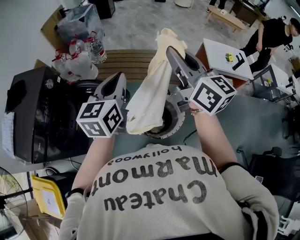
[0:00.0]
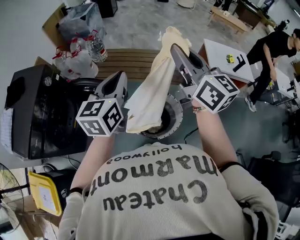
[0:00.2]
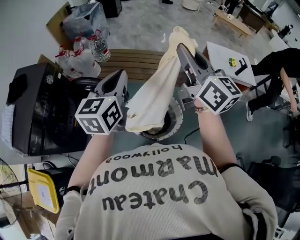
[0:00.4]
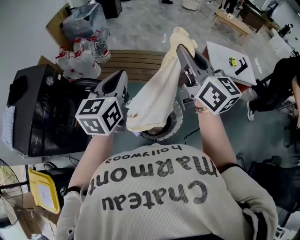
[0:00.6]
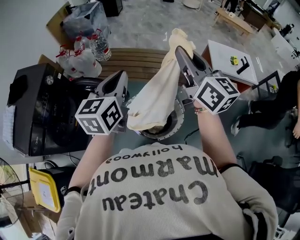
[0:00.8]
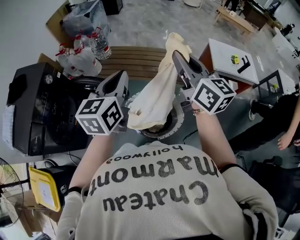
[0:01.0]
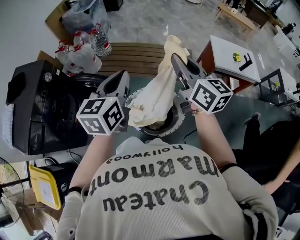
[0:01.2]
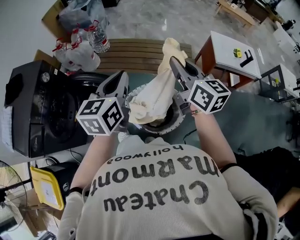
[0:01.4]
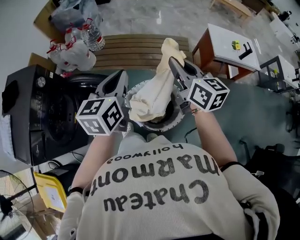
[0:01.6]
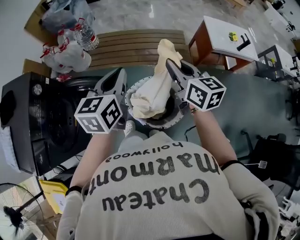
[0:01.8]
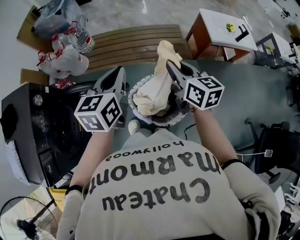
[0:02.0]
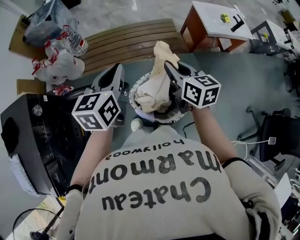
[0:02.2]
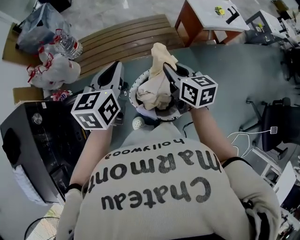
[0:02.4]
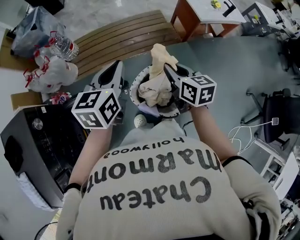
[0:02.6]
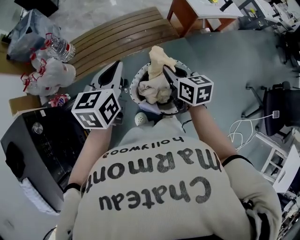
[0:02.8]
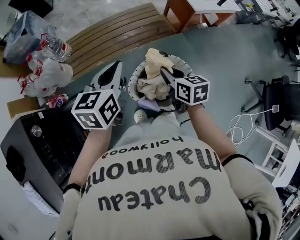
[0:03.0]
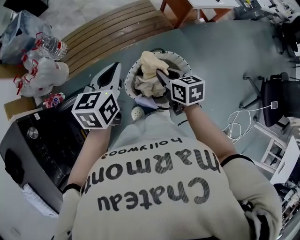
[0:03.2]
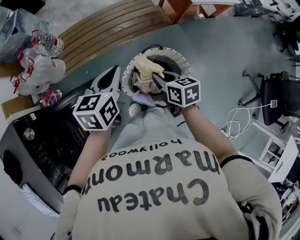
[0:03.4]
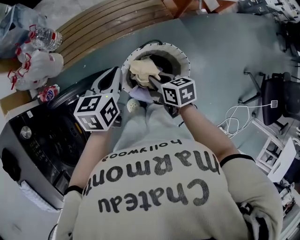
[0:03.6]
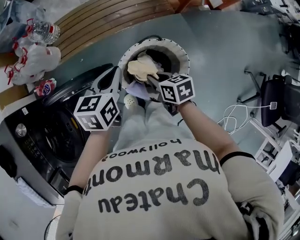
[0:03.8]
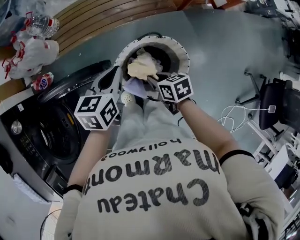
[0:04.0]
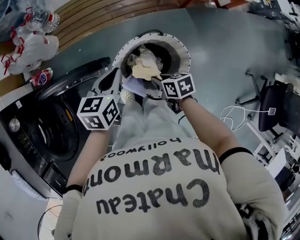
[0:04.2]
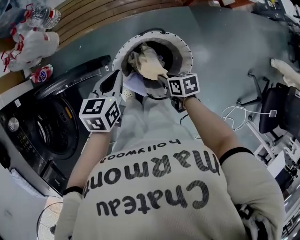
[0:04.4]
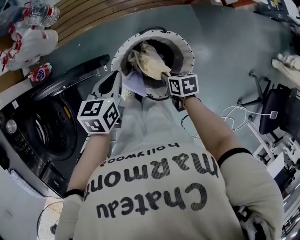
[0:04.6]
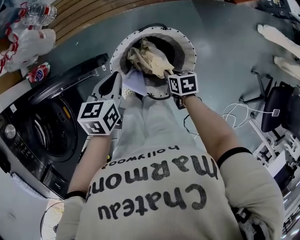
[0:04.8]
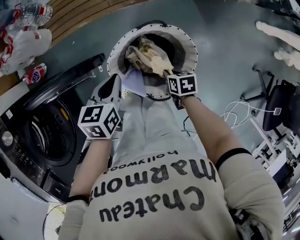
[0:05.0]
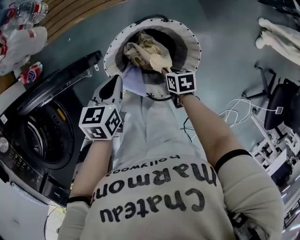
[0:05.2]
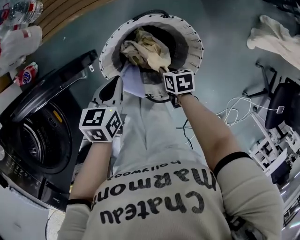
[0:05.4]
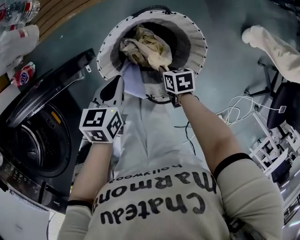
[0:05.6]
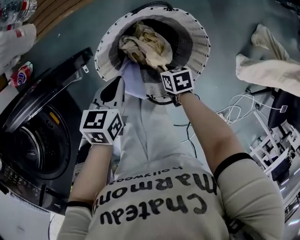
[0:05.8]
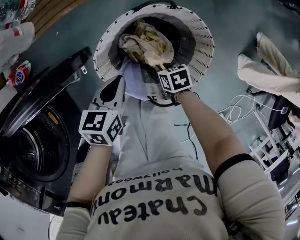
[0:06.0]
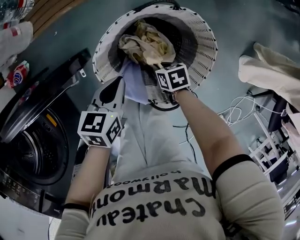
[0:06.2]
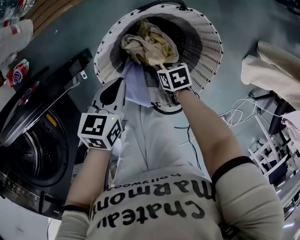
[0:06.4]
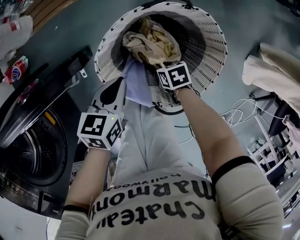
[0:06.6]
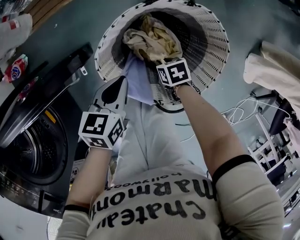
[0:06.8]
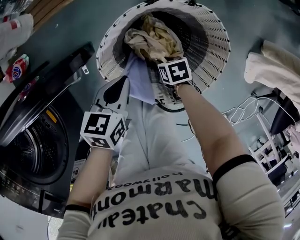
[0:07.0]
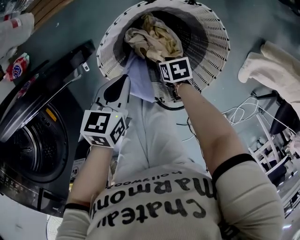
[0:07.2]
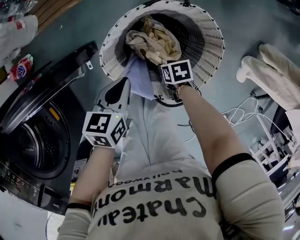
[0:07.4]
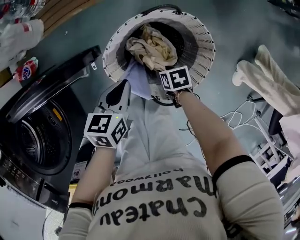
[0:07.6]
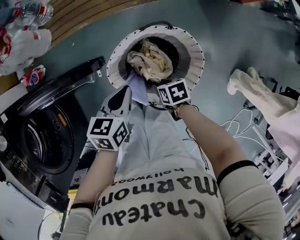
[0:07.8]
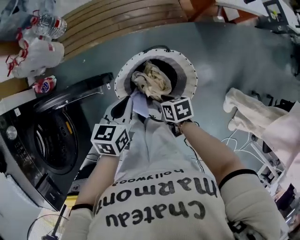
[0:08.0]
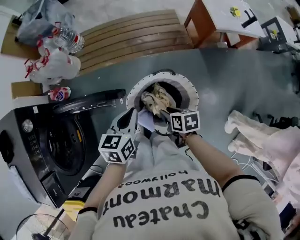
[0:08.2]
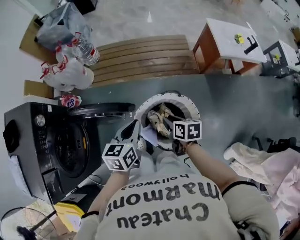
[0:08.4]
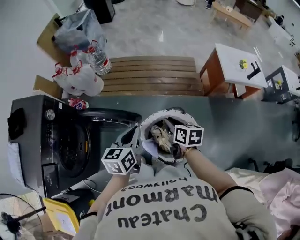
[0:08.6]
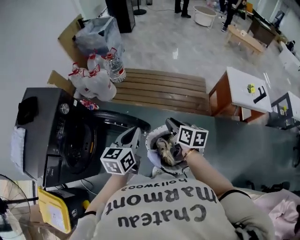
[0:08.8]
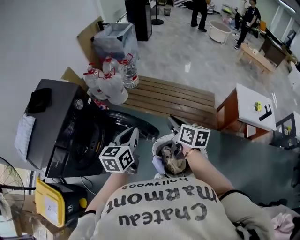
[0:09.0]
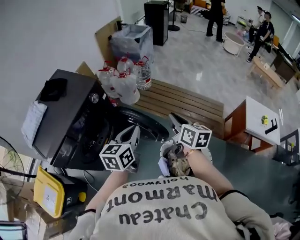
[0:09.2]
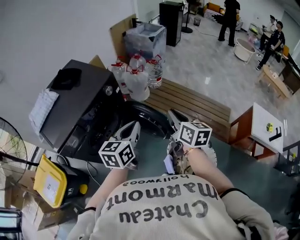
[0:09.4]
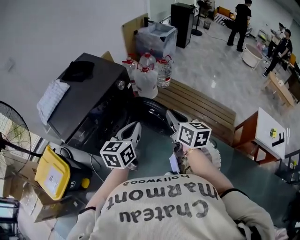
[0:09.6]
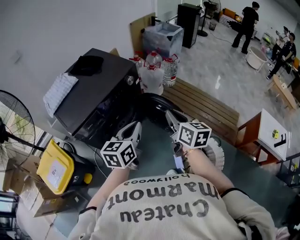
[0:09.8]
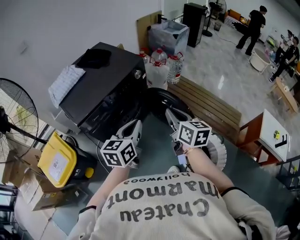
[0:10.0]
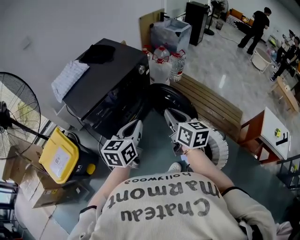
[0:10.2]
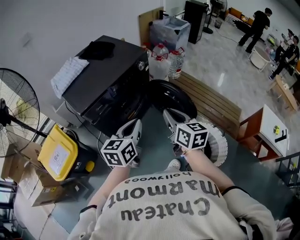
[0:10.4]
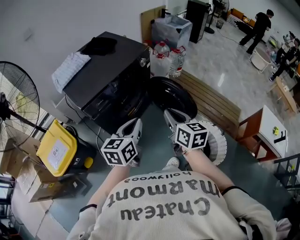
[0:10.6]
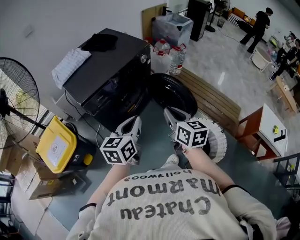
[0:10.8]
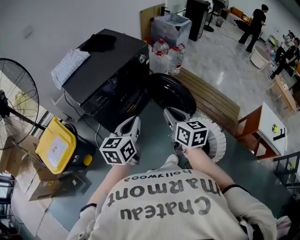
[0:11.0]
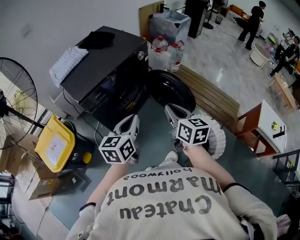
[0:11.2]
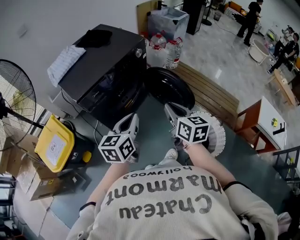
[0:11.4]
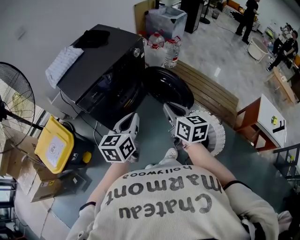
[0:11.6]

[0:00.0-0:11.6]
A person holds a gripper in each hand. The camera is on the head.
0:00.0 to 0:01.4: The right gripper is displaced downward by about 10 cm. Meanwhile the left gripper shifts by approximately 5 cm.
0:01.4 to 0:02.8: The left gripper shifts roughly 15 cm forward, downward and to the left, and turns by approximately 30 degrees; the right gripper heads downward, covering approximately 20 cm, and swivels approximately 40 degrees.
0:02.8 to 0:04.4: The left gripper goes approximately 20 cm downward, and swivels some 20 degrees. Meanwhile the right gripper moves downward and backward, some 25 cm, and swivels approximately 40 degrees.
0:04.4 to 0:05.8: The grippers both shift downward by approximately 20 cm.
0:05.8 to 0:07.2: The right gripper moves downward, approximately 10 cm, and opens.
0:07.2 to 0:08.8: Both grippers travel together upward, approximately 50 cm. The right gripper points its fingers about 40 degrees further upward, while the left gripper turns by some 40 degrees.
0:08.8 to 0:10.2: The left gripper moves some 35 cm, and rotates roughly 30 degrees; the right gripper changes place by approximately 40 cm, and turns by approximately 40 degrees.
0:10.2 to 0:11.6: The right gripper goes about 5 cm backward, while the left gripper ends up approximately 5 cm from where it was.

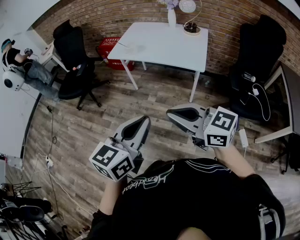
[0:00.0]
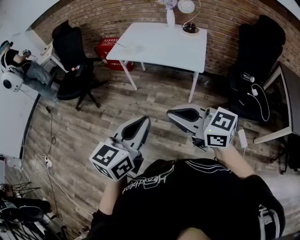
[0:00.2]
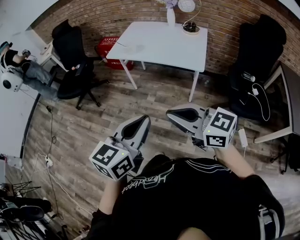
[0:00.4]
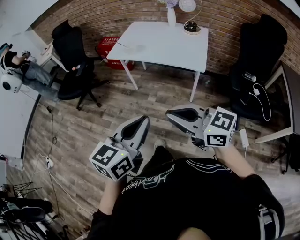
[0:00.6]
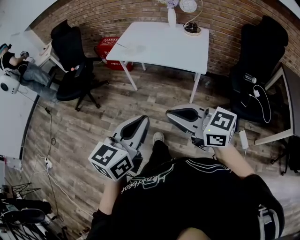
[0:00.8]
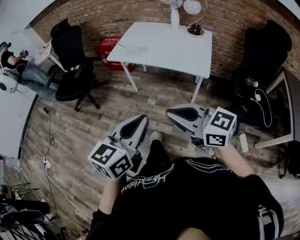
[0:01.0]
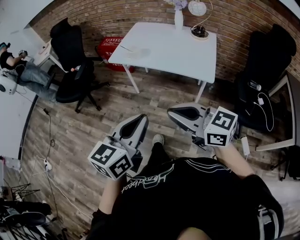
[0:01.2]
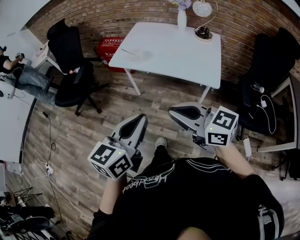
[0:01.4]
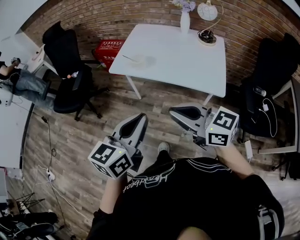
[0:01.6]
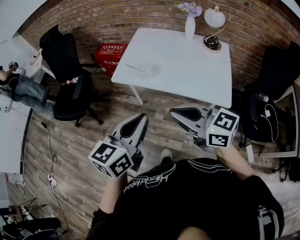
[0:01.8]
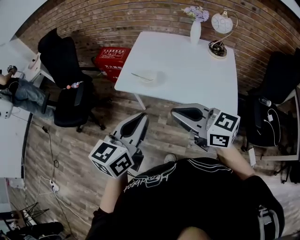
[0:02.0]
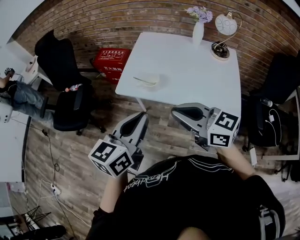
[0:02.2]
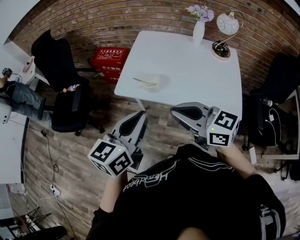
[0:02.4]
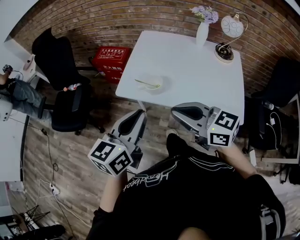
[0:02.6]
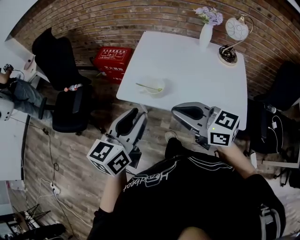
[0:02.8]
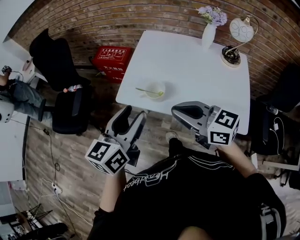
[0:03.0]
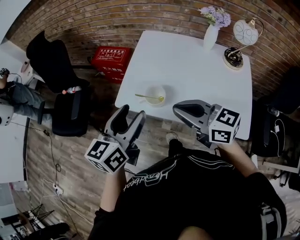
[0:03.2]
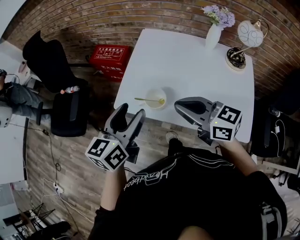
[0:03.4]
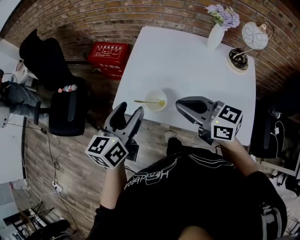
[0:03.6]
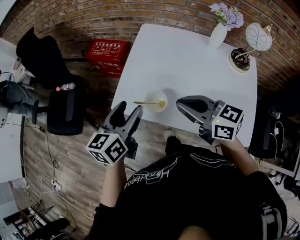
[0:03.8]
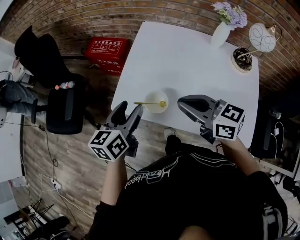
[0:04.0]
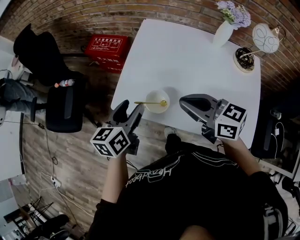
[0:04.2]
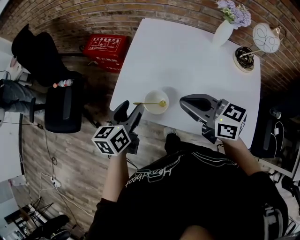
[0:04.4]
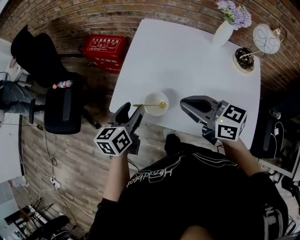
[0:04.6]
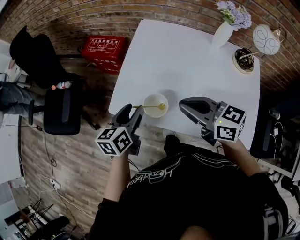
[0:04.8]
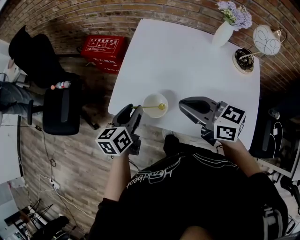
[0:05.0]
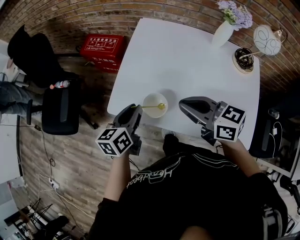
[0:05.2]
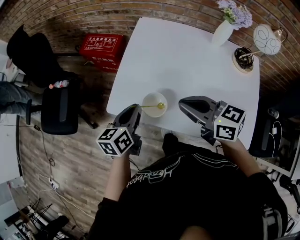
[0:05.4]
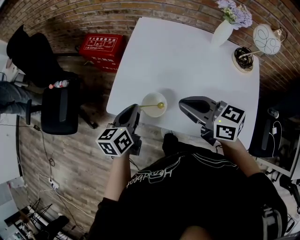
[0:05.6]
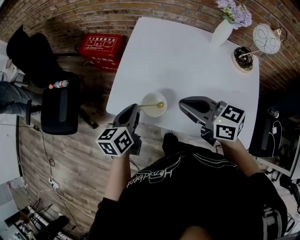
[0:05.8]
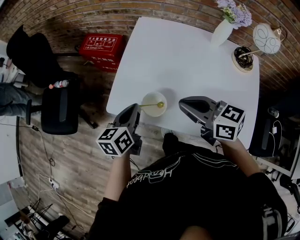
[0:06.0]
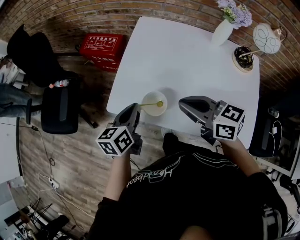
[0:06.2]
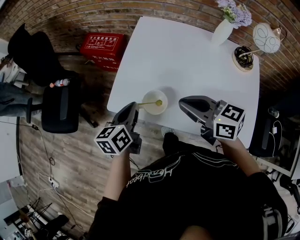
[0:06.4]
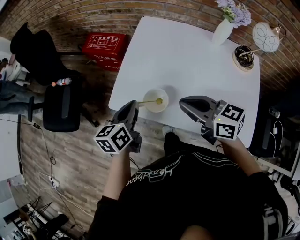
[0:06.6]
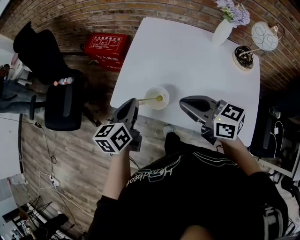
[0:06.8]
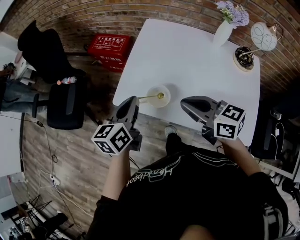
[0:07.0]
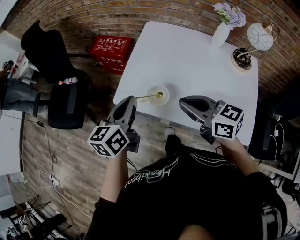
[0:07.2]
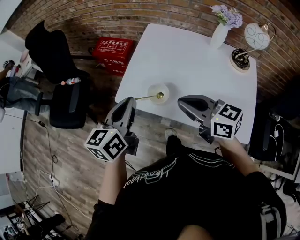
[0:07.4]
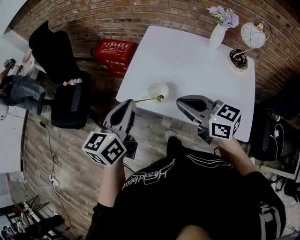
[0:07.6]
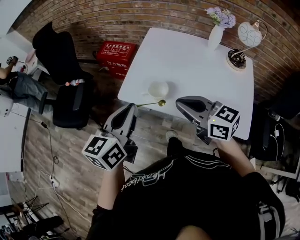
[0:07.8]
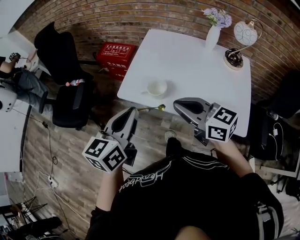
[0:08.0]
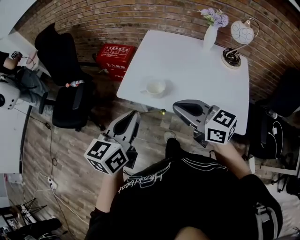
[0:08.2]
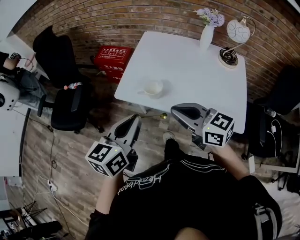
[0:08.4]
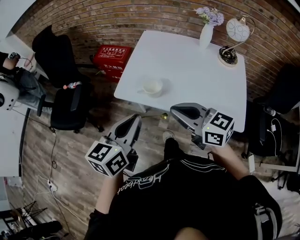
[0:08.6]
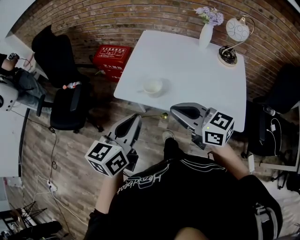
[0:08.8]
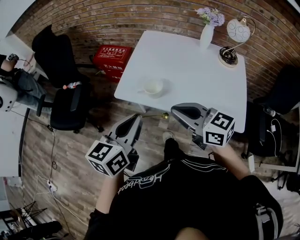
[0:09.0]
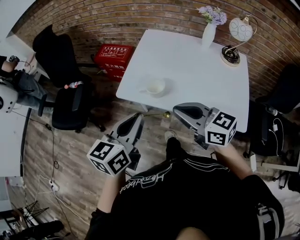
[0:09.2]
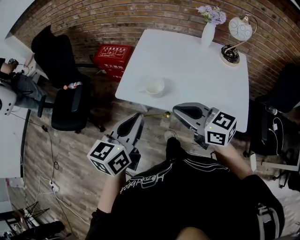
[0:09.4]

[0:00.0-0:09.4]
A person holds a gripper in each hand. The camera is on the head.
0:00.0 to 0:01.6: The grippers both shift forward by approximately 25 cm.
0:01.6 to 0:03.2: Both grippers move forward, approximately 35 cm. The left gripper opens.
0:03.2 to 0:04.8: The left gripper shifts approximately 20 cm downward and forward; the right gripper is displaced forward and downward by roughly 10 cm.
0:04.8 to 0:06.2: The left gripper closes.
0:06.2 to 0:07.8: The left gripper goes roughly 20 cm upward and backward. Meanwhile the right gripper shifts approximately 10 cm backward and upward.
0:07.8 to 0:09.4: The two grippers go approximately 5 cm backward.

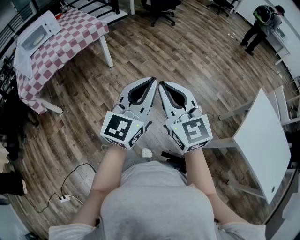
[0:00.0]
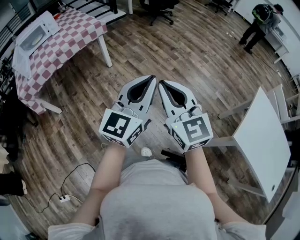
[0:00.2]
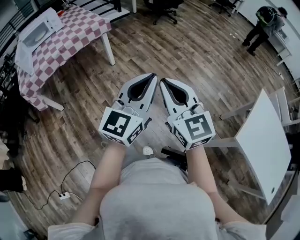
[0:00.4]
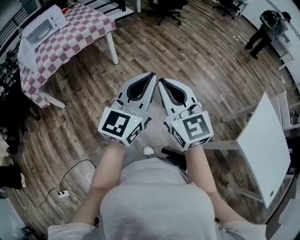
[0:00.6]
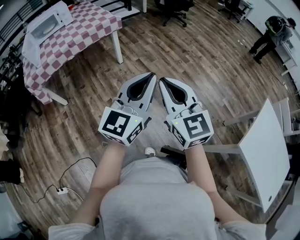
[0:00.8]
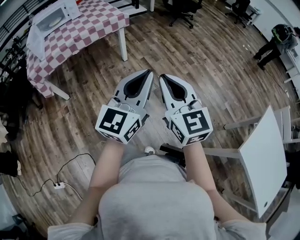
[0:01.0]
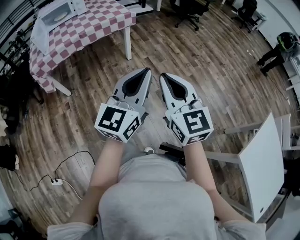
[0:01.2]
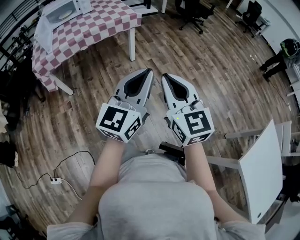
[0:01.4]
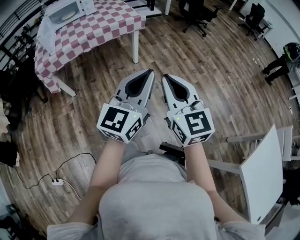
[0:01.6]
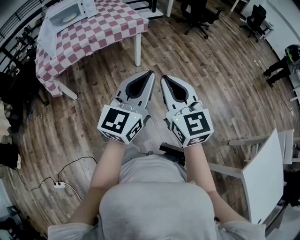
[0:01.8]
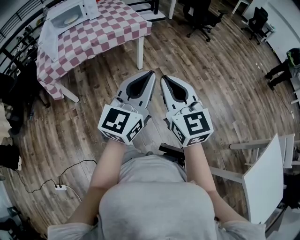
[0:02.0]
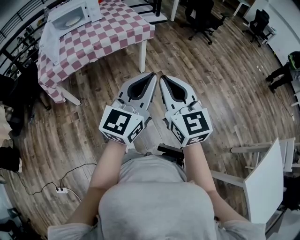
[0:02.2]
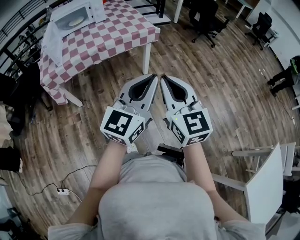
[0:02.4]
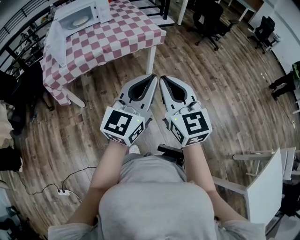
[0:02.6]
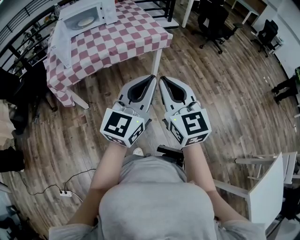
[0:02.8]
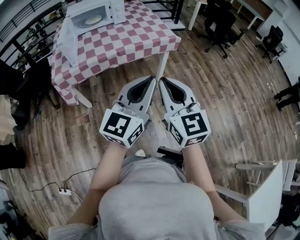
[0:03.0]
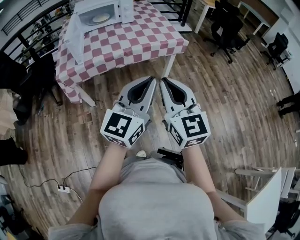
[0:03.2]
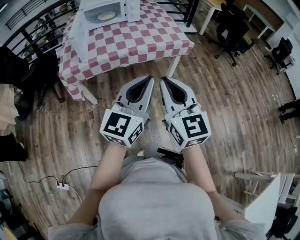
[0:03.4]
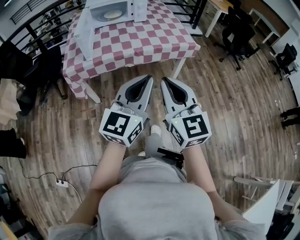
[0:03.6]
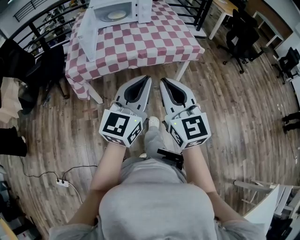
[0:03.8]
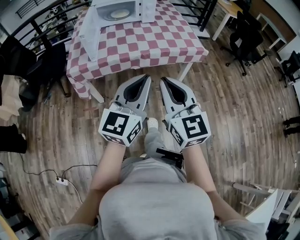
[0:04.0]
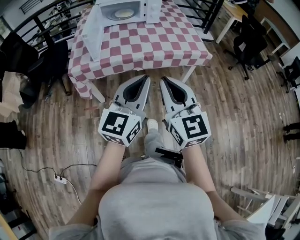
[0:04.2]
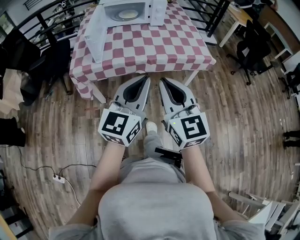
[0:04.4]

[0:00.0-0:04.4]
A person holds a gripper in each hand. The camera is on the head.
0:00.0 to 0:01.4: The right gripper moves to the left and forward, some 15 cm; the left gripper is displaced to the left by approximately 15 cm.
0:01.4 to 0:03.0: The two grippers go some 30 cm to the left and forward.
0:03.0 to 0:04.4: The right gripper travels forward and to the left by roughly 20 cm, while the left gripper is displaced to the left and forward by about 20 cm.
